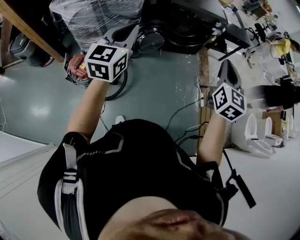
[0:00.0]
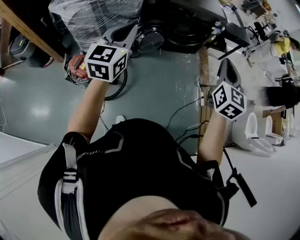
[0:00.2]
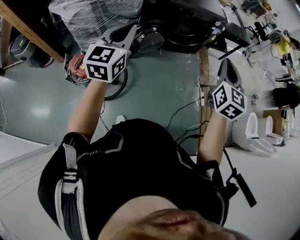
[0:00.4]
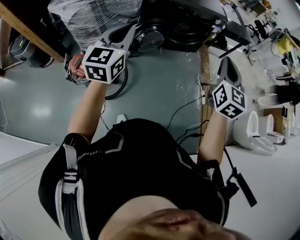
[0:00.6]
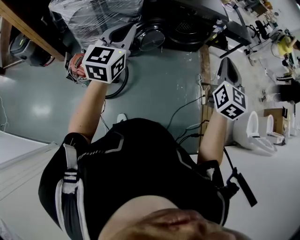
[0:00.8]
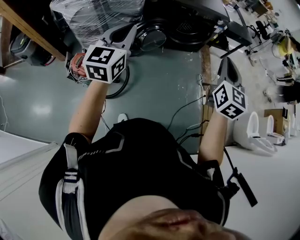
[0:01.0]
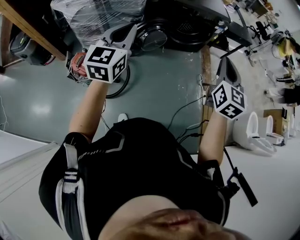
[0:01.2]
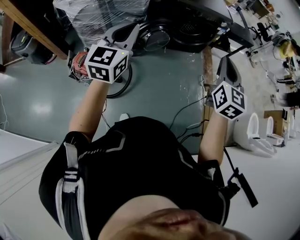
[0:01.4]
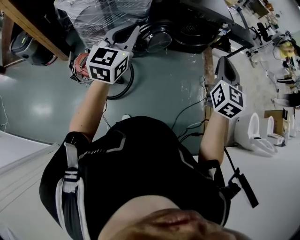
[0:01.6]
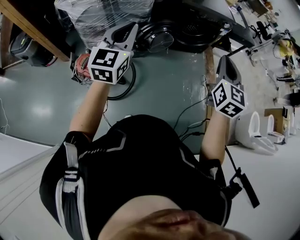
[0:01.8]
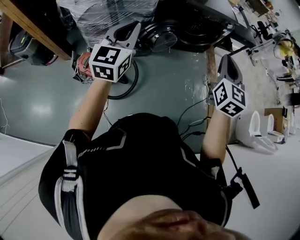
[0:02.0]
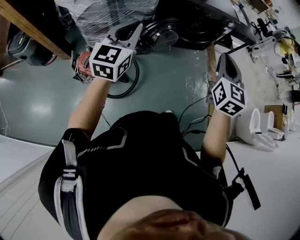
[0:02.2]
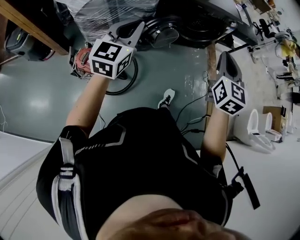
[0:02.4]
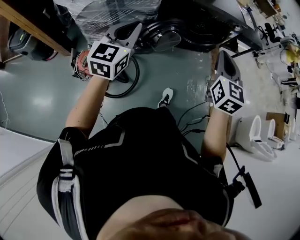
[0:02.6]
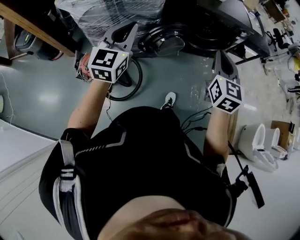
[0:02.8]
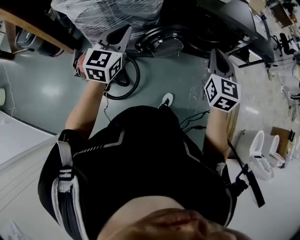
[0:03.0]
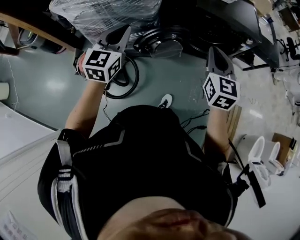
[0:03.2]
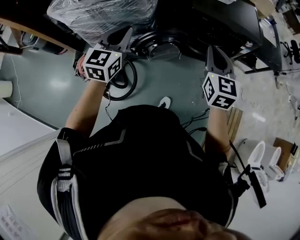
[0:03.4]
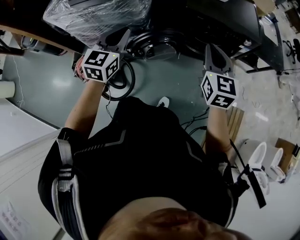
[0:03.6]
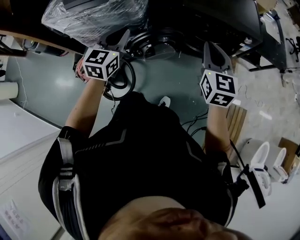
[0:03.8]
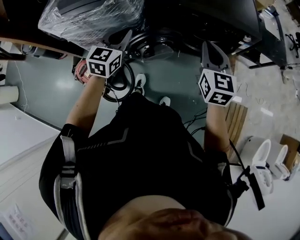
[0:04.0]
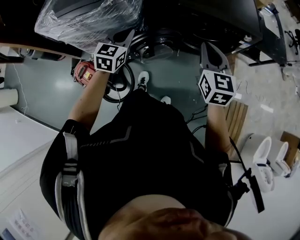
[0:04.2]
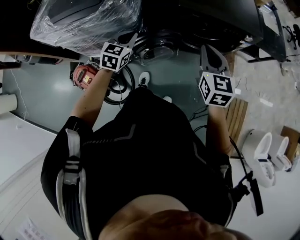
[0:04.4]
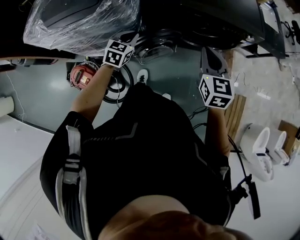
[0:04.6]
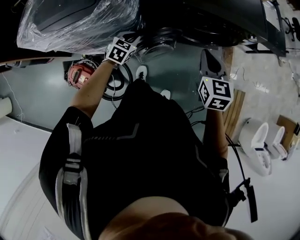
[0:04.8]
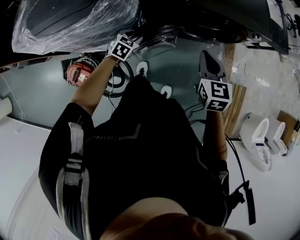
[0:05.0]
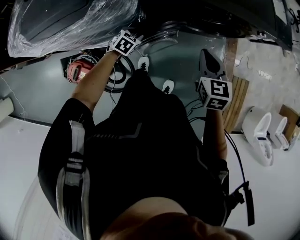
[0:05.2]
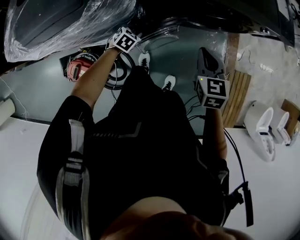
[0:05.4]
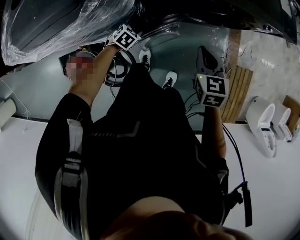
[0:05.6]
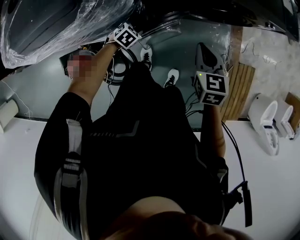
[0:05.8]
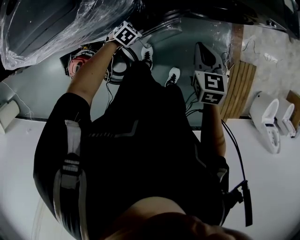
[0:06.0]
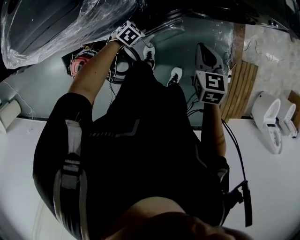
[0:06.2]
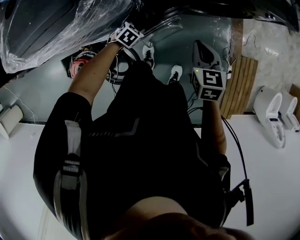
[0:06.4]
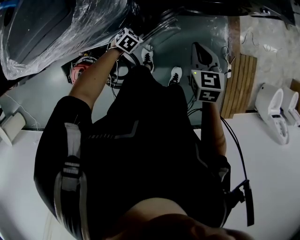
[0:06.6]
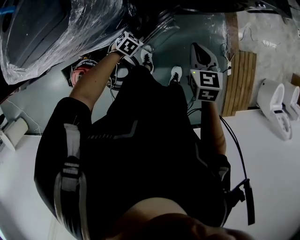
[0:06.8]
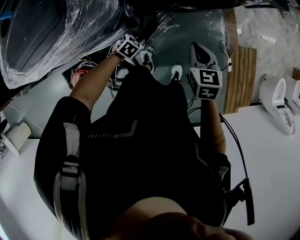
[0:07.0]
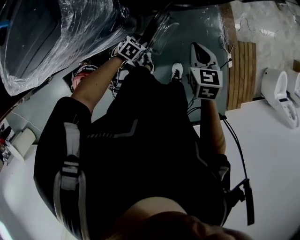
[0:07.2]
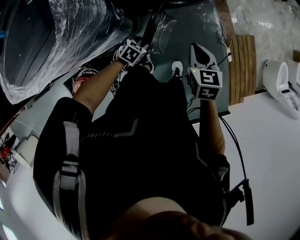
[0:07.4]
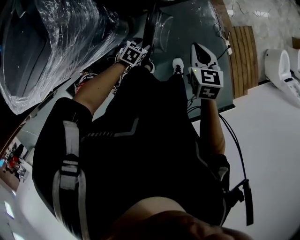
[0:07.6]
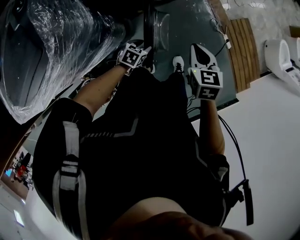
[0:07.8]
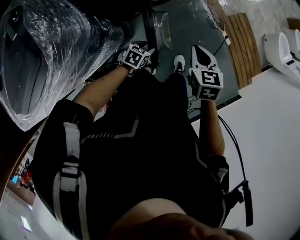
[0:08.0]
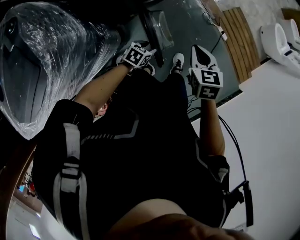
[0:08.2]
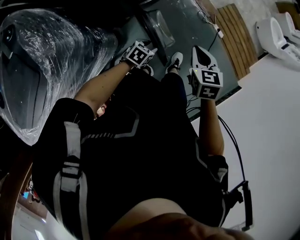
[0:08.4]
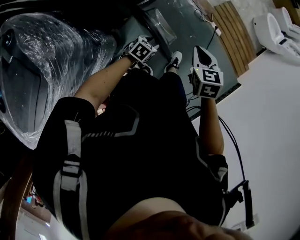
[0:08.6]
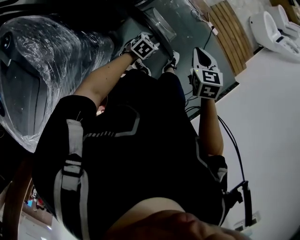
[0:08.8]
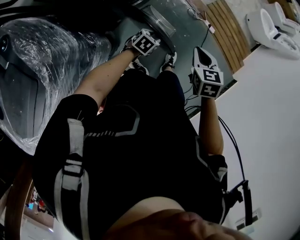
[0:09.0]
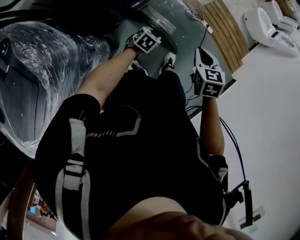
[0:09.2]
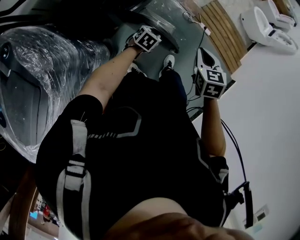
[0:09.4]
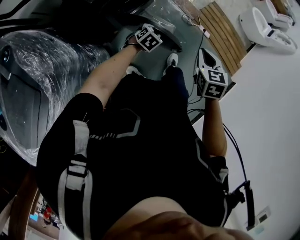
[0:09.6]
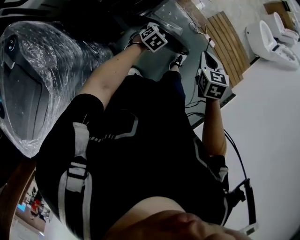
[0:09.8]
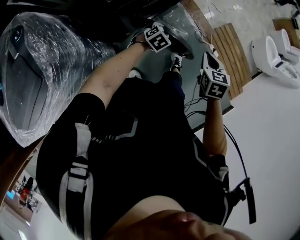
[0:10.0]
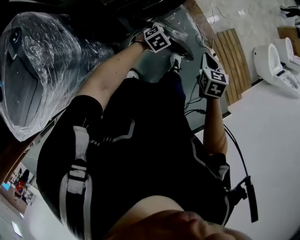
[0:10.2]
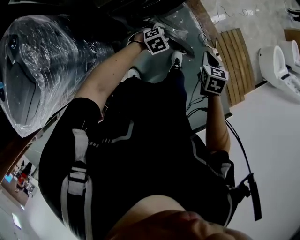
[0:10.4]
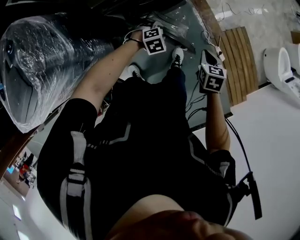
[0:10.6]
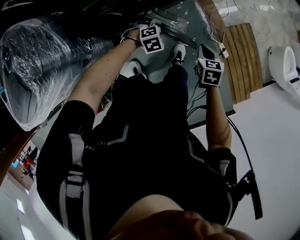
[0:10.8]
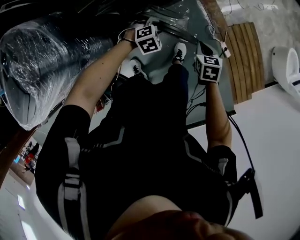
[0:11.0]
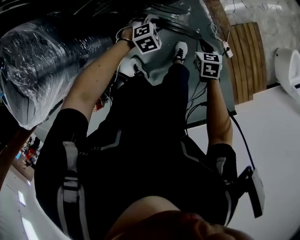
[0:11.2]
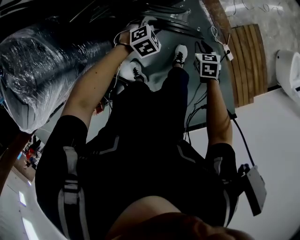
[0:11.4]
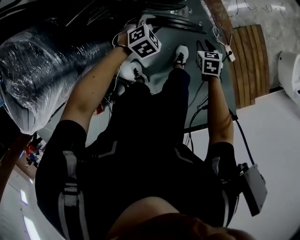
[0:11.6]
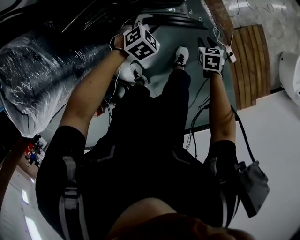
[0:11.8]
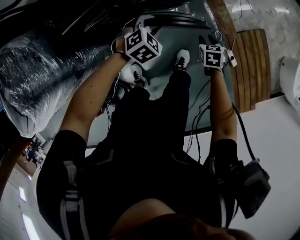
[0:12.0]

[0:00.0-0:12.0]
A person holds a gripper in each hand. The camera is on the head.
0:00.0 to 0:01.6: Both grippers move to the left, some 5 cm.
0:01.6 to 0:03.0: The right gripper heads forward, covering about 20 cm; the left gripper shifts about 20 cm forward and downward.
0:03.0 to 0:04.4: The right gripper is displaced forward and to the right by about 20 cm, while the left gripper goes approximately 30 cm forward, downward and to the right, and rotates about 20 degrees.
0:04.4 to 0:06.0: The right gripper goes approximately 20 cm downward and to the left, and changes its angle by some 20 degrees; the left gripper shifts approximately 30 cm downward, tilts its fingers about 40 degrees downward, and opens.
0:06.0 to 0:07.6: The right gripper goes roughly 10 cm to the right and backward, and rotates roughly 20 degrees; the left gripper goes some 15 cm to the right.
0:07.6 to 0:09.0: The left gripper moves about 15 cm, and turns by about 30 degrees. Meanwhile the right gripper moves some 10 cm, and rotates some 20 degrees.
0:09.0 to 0:10.4: The grippers both shift forward by about 15 cm.
0:10.4 to 0:12.0: The left gripper ends up about 15 cm from where it was. The right gripper moves downward, roughly 25 cm, and opens.

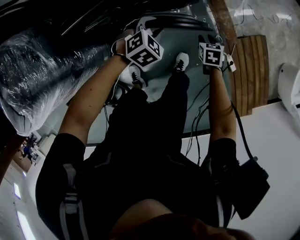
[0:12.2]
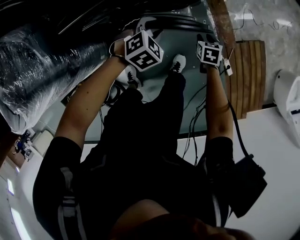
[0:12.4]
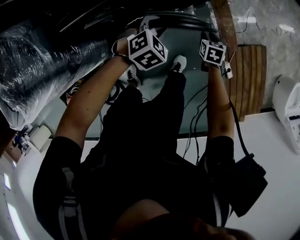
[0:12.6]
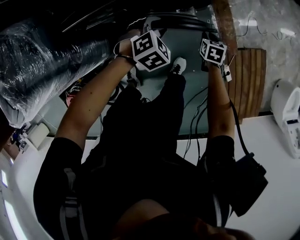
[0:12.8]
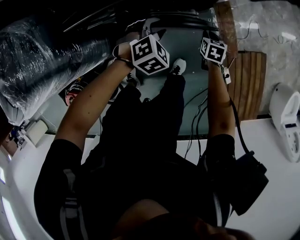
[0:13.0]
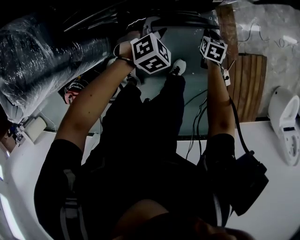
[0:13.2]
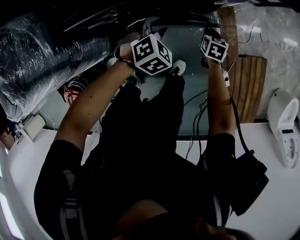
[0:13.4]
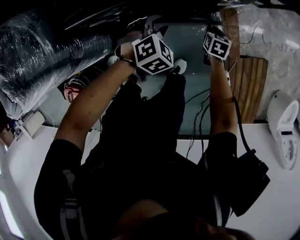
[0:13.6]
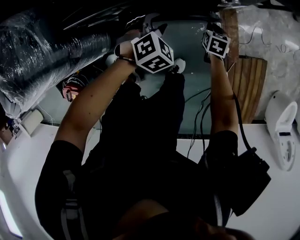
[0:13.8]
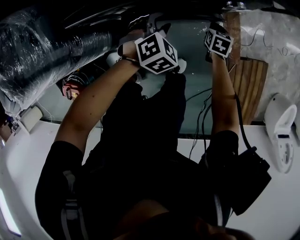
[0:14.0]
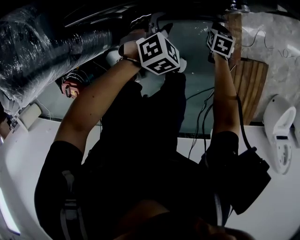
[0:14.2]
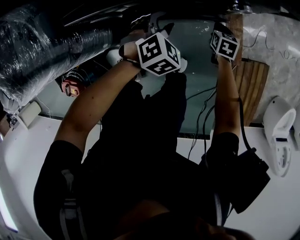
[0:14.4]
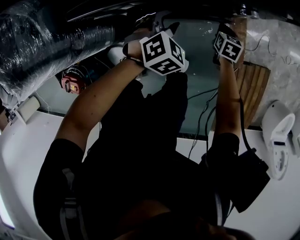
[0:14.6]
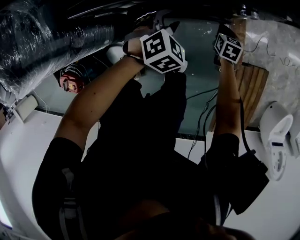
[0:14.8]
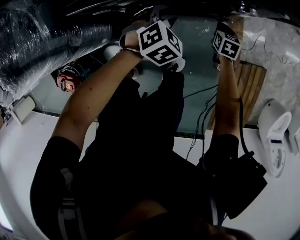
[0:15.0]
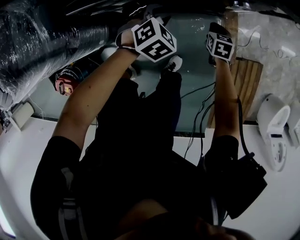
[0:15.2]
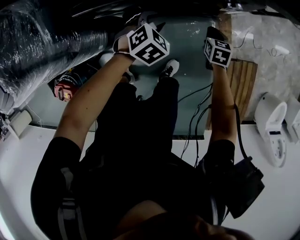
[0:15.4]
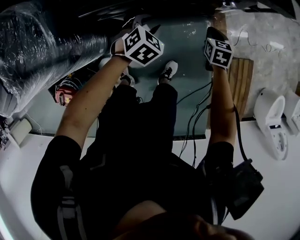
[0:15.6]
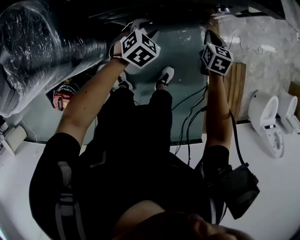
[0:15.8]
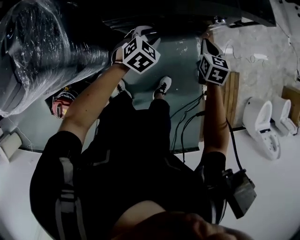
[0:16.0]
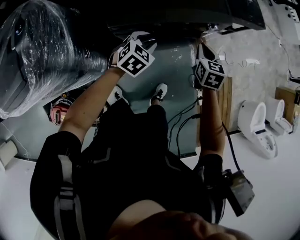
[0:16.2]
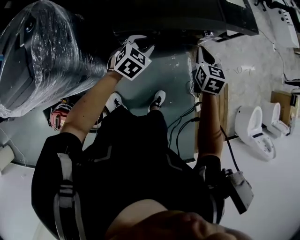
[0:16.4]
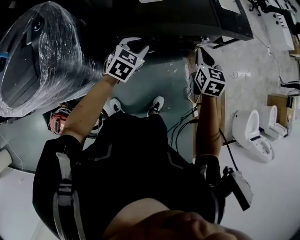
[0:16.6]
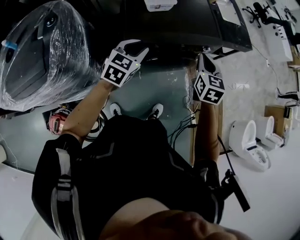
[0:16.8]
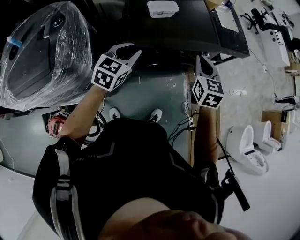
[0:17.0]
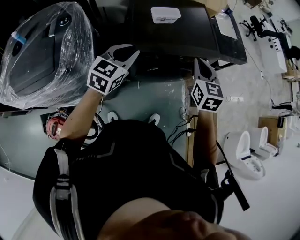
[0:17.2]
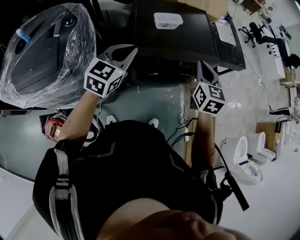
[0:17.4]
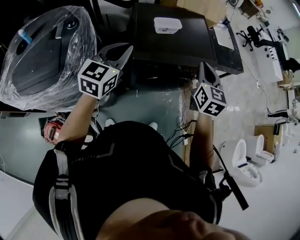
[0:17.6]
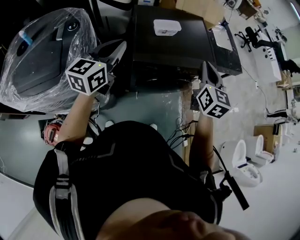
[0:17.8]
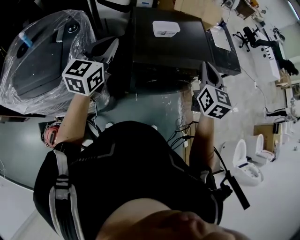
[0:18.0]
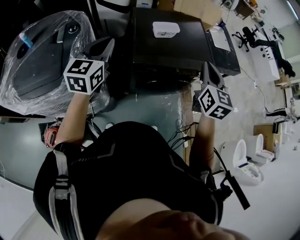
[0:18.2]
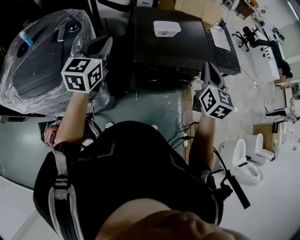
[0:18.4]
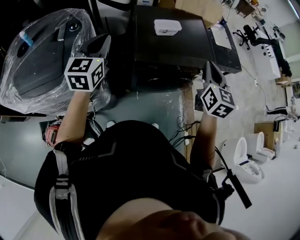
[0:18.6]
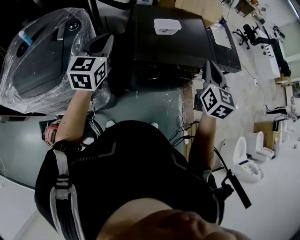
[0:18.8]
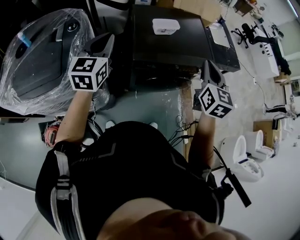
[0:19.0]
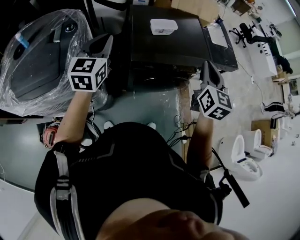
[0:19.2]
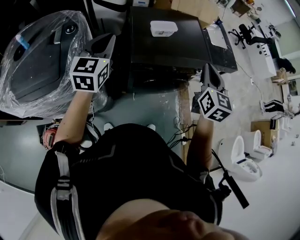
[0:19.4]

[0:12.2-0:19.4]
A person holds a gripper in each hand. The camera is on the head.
0:12.2 to 0:13.6: The right gripper is displaced forward by some 15 cm, and closes up, while the left gripper goes about 5 cm forward.
0:13.6 to 0:15.0: There are only small adjustments of the grippers.
0:15.0 to 0:16.6: The right gripper shifts approximately 40 cm upward, and changes its angle by about 30 degrees, while the left gripper goes some 30 cm upward and to the left, and changes its angle by roughly 30 degrees.
0:16.6 to 0:18.0: The two grippers go some 25 cm upward and to the left. The left gripper angles its fingers upward, by about 30 degrees, and closes its fingers.
0:18.0 to 0:19.4: The grippers make only small movements.

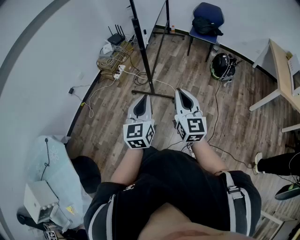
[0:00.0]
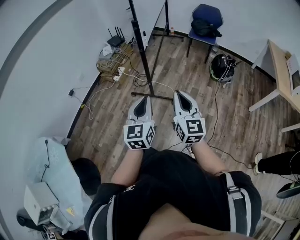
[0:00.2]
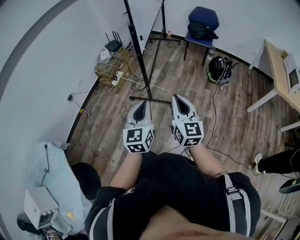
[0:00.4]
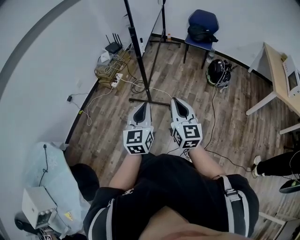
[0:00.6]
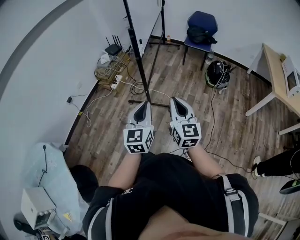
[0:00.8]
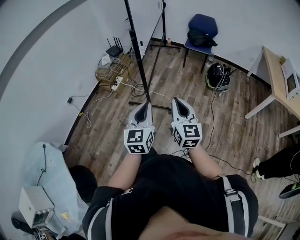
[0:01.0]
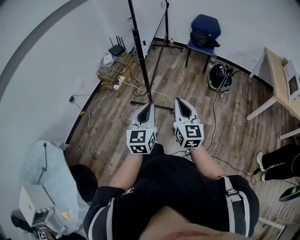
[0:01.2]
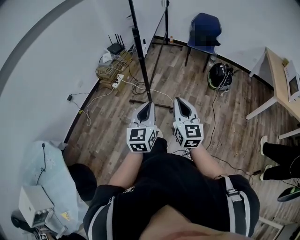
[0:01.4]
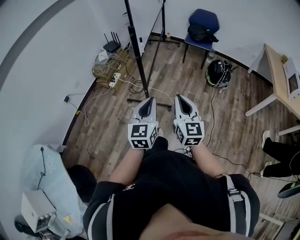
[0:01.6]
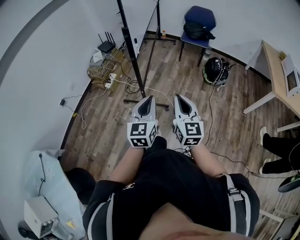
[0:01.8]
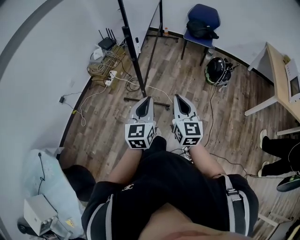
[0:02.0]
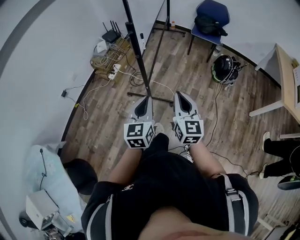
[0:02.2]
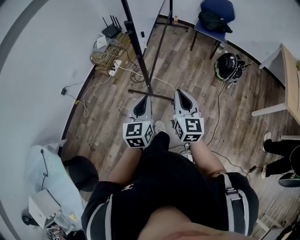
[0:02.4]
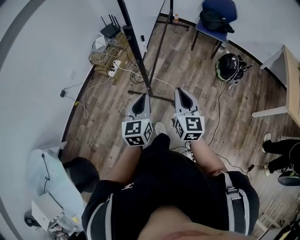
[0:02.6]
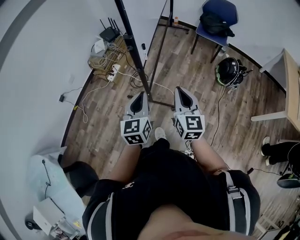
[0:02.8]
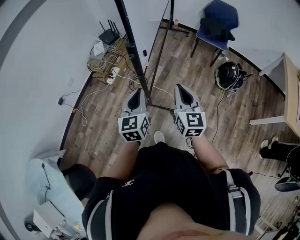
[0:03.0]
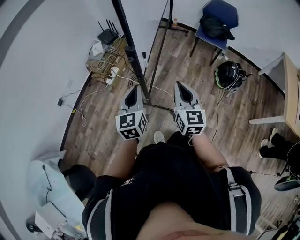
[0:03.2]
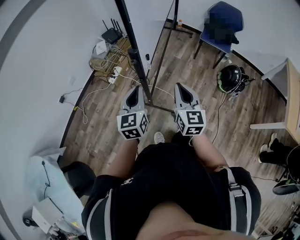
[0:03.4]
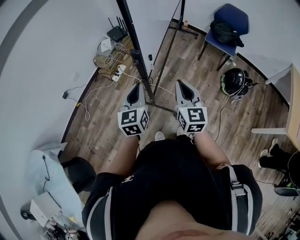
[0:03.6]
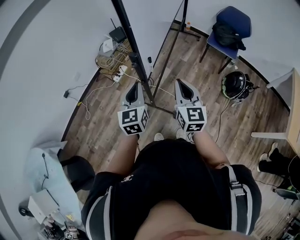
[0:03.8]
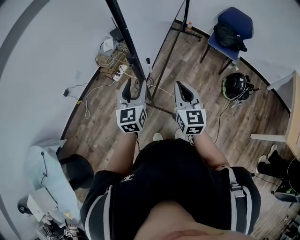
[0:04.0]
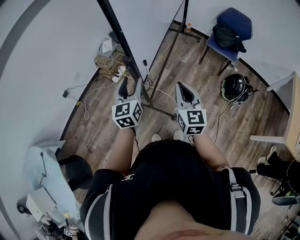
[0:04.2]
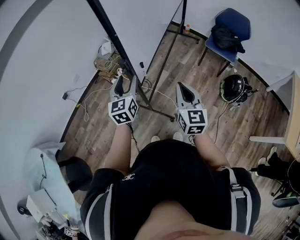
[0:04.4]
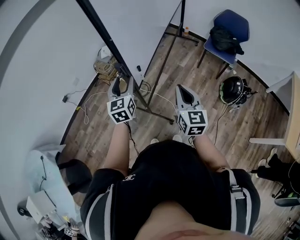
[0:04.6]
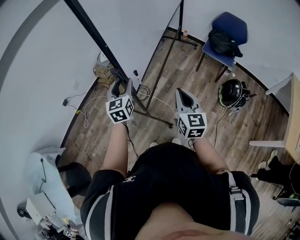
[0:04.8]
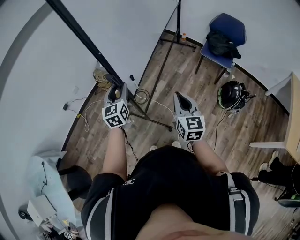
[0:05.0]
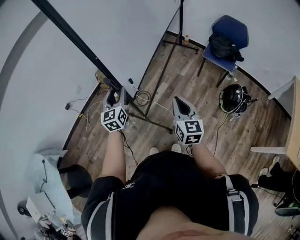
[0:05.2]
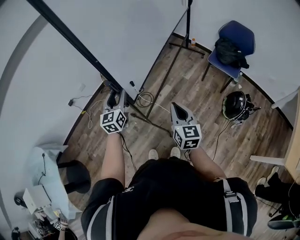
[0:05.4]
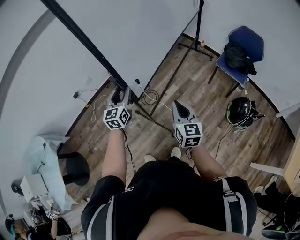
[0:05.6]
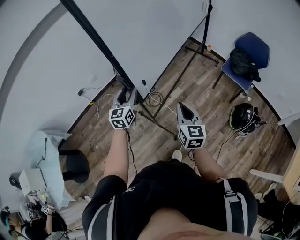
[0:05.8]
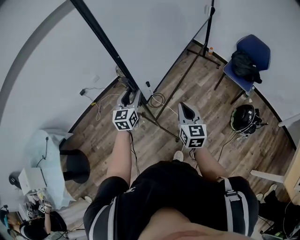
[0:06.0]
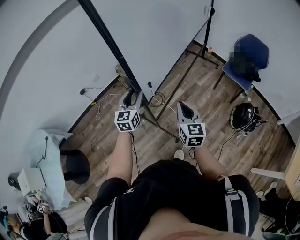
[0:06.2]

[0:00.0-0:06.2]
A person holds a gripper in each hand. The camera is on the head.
0:00.0 to 0:01.6: The left gripper moves about 5 cm.
0:01.6 to 0:03.2: The two grippers go some 30 cm forward.
0:03.2 to 0:04.6: The left gripper travels forward by about 10 cm, and opens up. Meanwhile the right gripper goes roughly 10 cm to the right and forward.
0:04.6 to 0:06.2: There are only small adjustments of the grippers.
